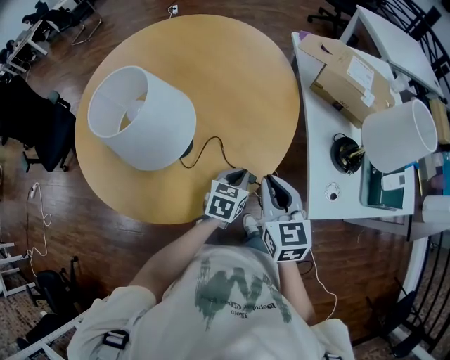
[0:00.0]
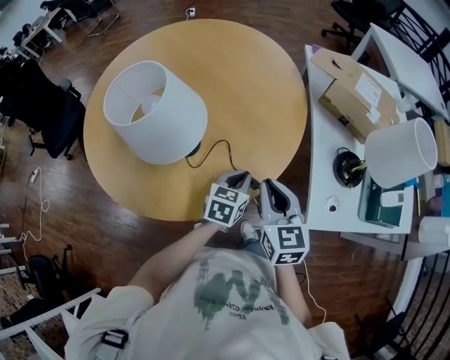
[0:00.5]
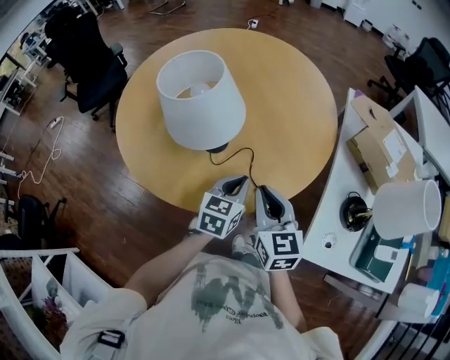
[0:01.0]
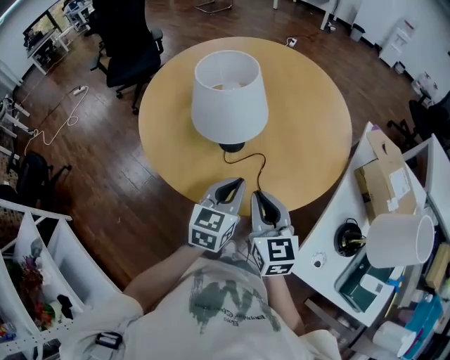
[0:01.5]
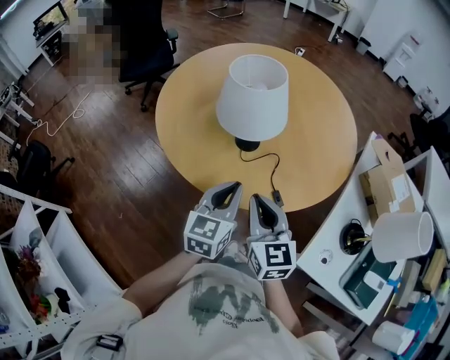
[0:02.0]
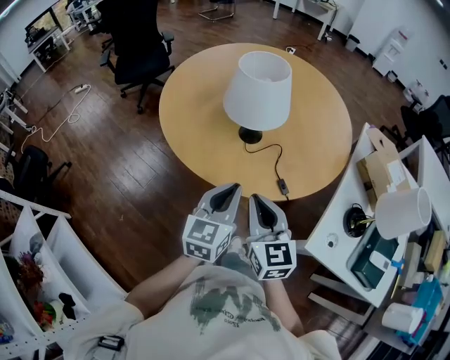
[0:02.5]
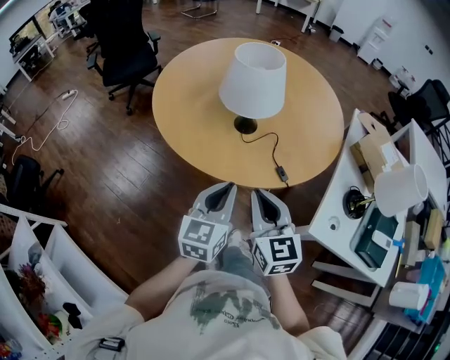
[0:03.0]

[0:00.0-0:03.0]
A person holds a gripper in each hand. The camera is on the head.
0:00.0 to 0:01.5: The left gripper travels upward by approximately 15 cm, and changes its angle by about 50 degrees, while the right gripper moves approximately 10 cm, and changes its angle by some 40 degrees.
0:01.5 to 0:03.0: Both grippers travel together backward and to the left, about 15 cm.

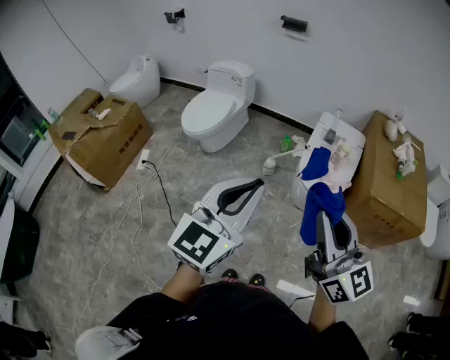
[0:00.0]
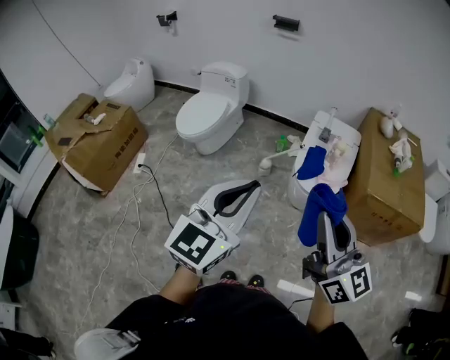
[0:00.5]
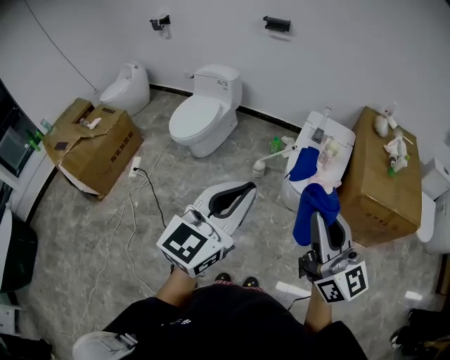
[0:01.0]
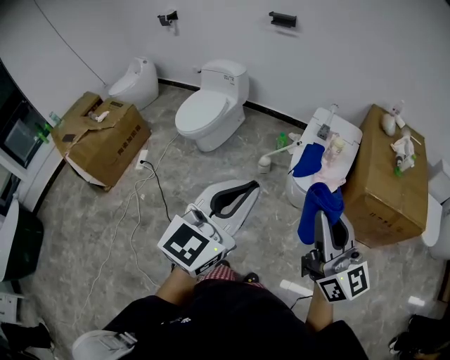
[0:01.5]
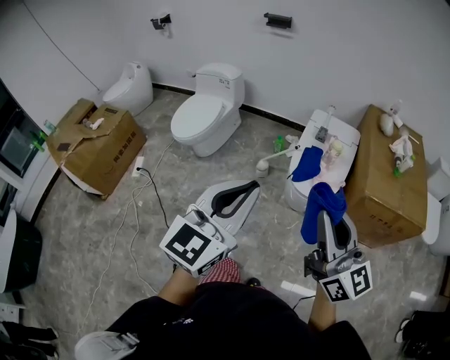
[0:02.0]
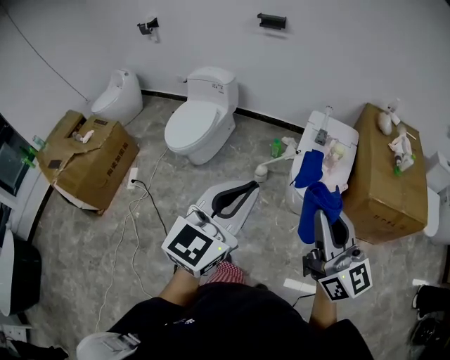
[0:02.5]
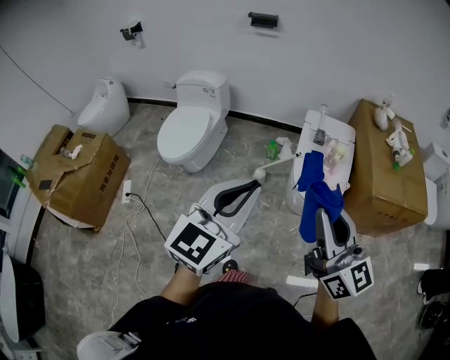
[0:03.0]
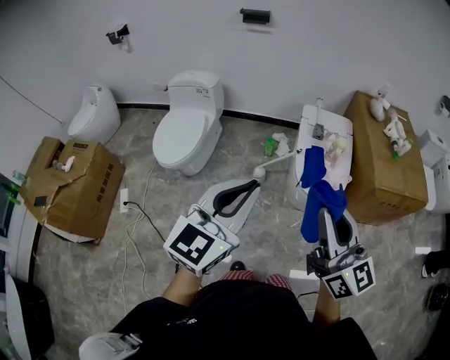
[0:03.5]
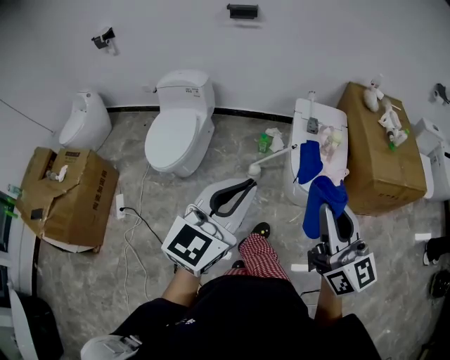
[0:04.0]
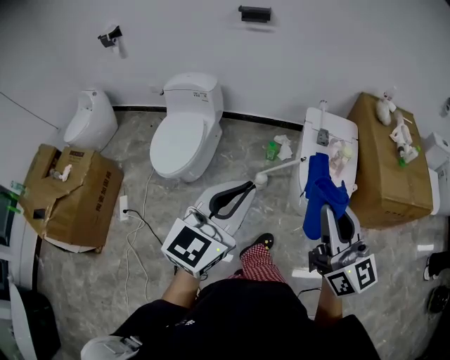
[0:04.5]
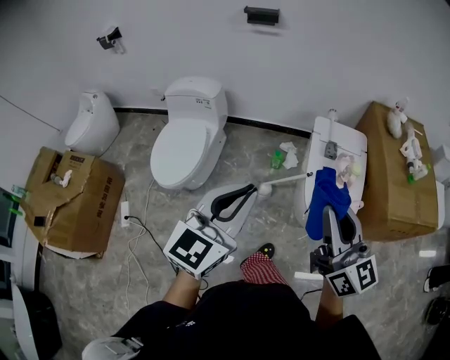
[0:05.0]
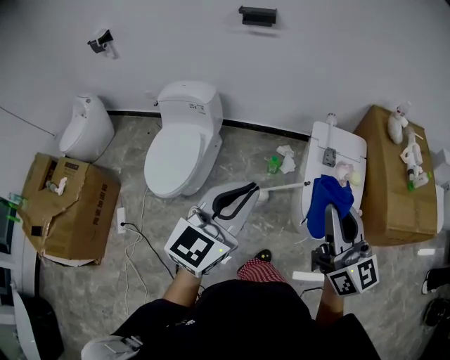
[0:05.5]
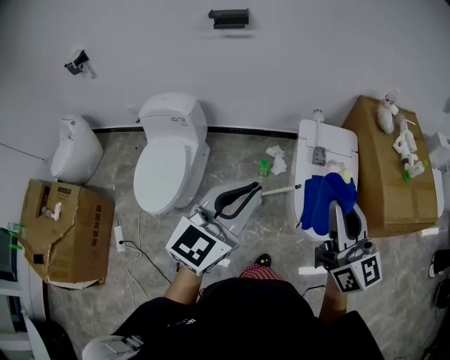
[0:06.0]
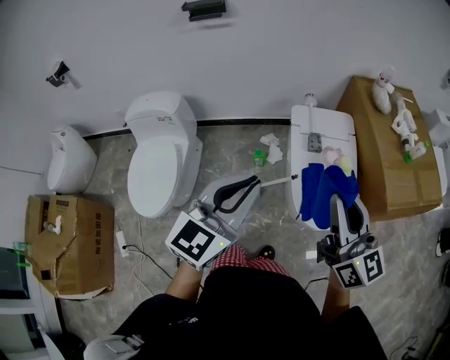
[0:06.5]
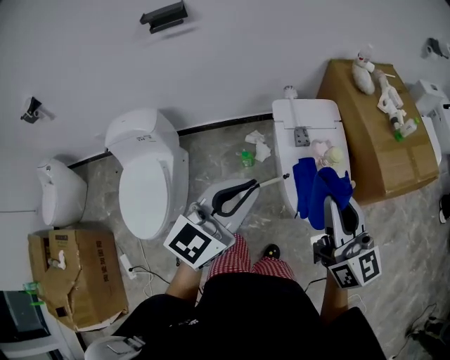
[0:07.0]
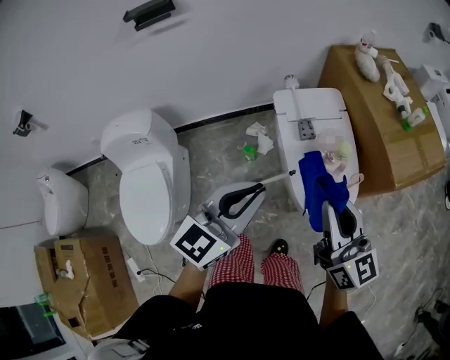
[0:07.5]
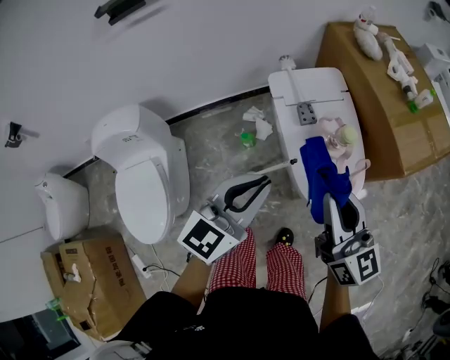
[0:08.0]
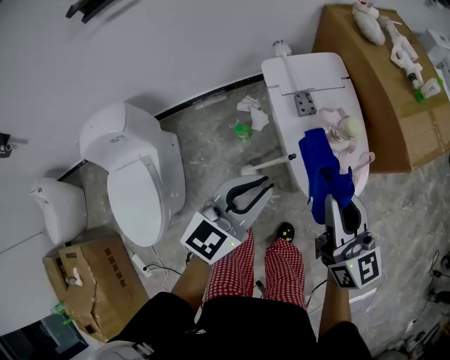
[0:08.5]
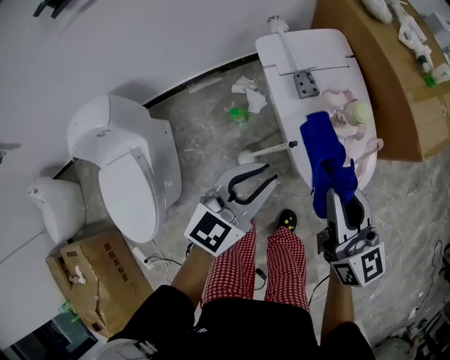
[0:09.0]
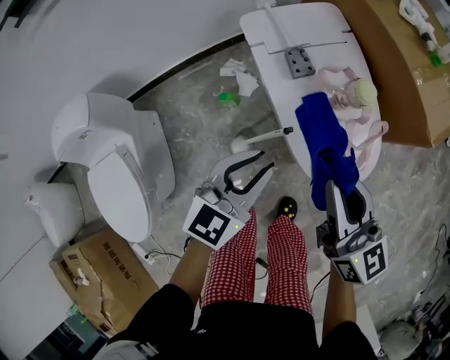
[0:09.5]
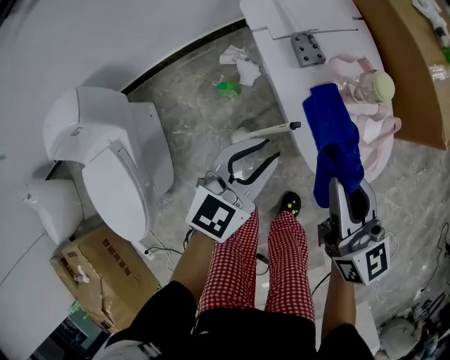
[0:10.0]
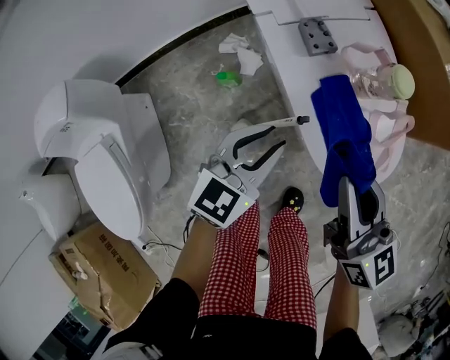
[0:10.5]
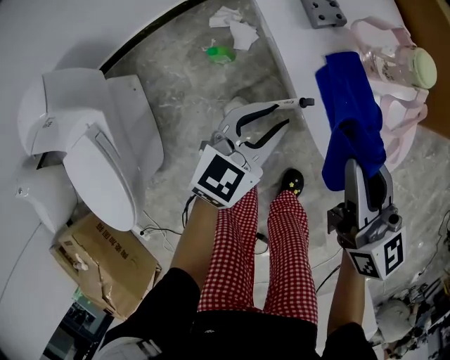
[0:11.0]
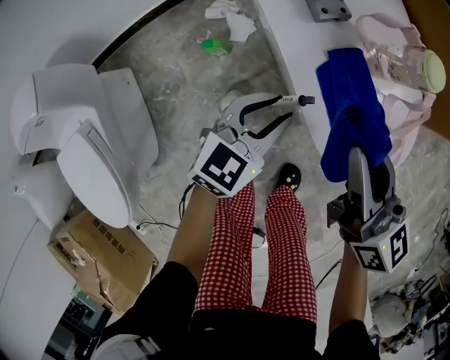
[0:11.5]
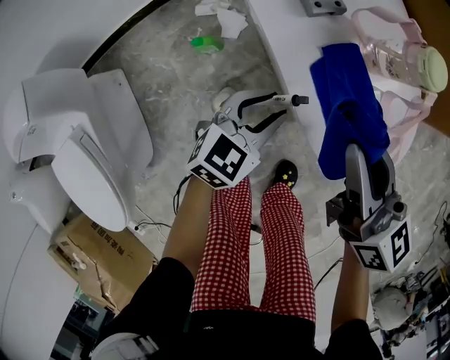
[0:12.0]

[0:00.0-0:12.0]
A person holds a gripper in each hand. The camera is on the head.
0:00.0 to 0:02.0: The two grippers go some 5 cm to the right.
0:02.0 to 0:04.0: The grippers both shift to the left and forward by about 20 cm.
0:04.0 to 0:06.0: The two grippers go approximately 30 cm forward.
0:06.0 to 0:08.0: The right gripper heads downward and forward, covering about 15 cm, while the left gripper travels forward and downward by approximately 20 cm, and swivels roughly 20 degrees.
0:08.0 to 0:10.0: Both grippers travel together downward, some 20 cm.
0:10.0 to 0:12.0: The left gripper is displaced downward by some 20 cm, while the right gripper is displaced downward and forward by roughly 10 cm.

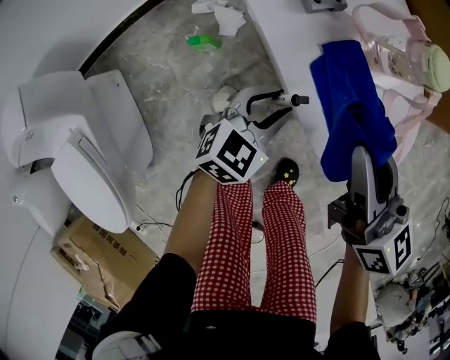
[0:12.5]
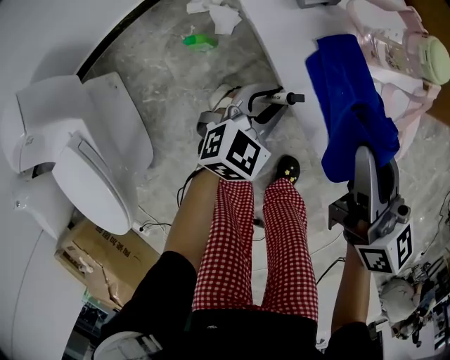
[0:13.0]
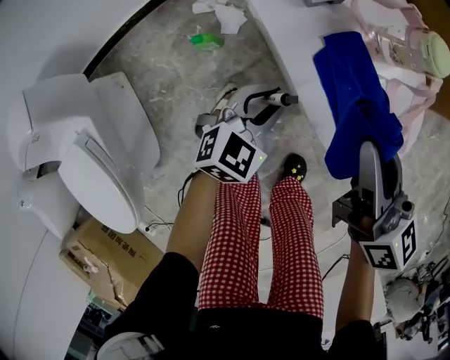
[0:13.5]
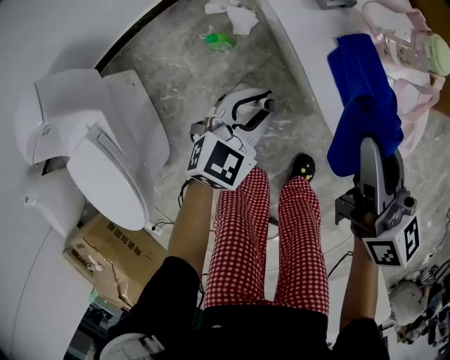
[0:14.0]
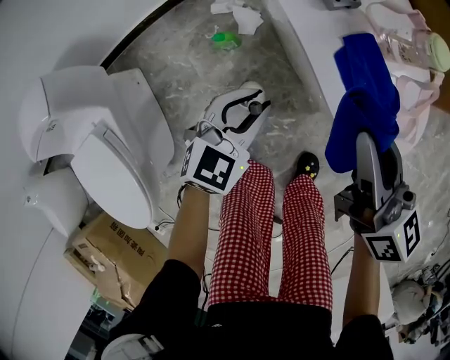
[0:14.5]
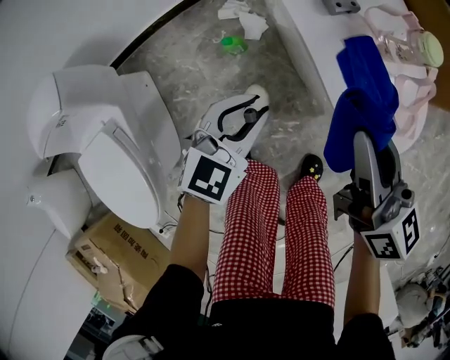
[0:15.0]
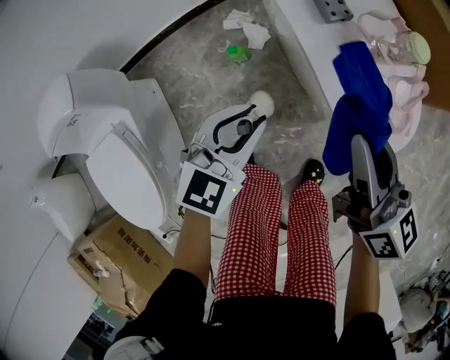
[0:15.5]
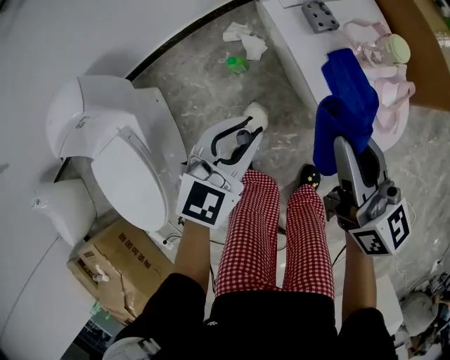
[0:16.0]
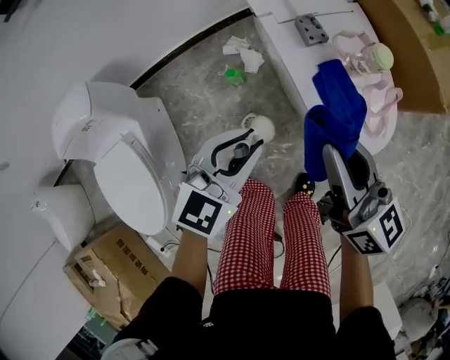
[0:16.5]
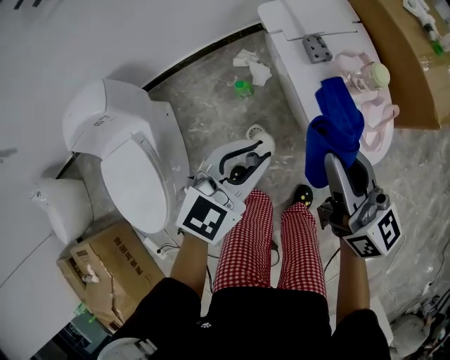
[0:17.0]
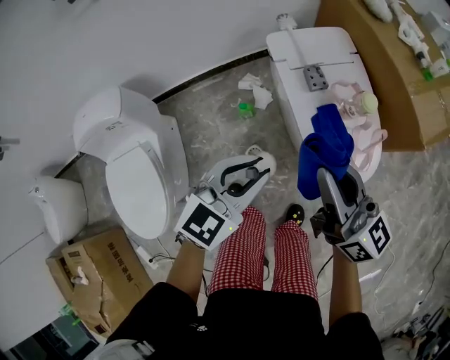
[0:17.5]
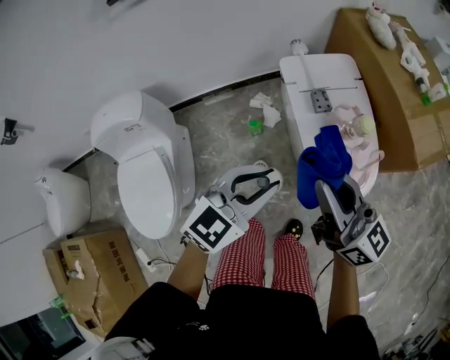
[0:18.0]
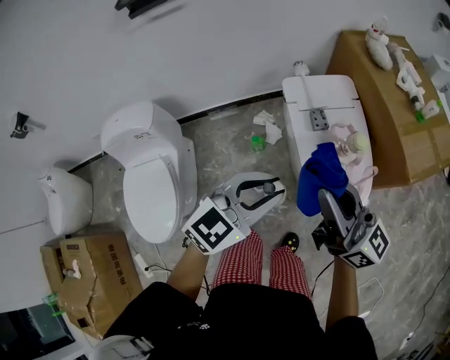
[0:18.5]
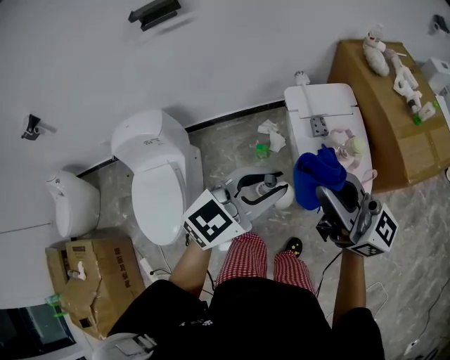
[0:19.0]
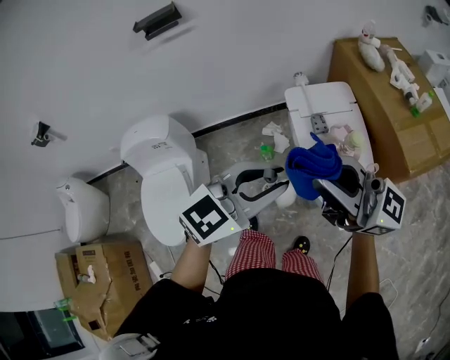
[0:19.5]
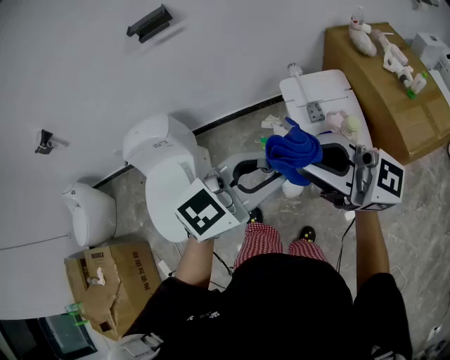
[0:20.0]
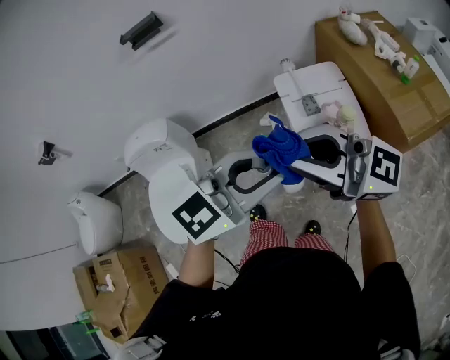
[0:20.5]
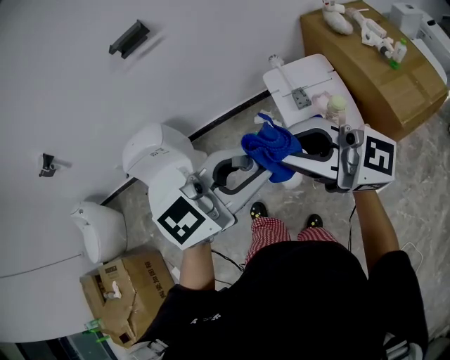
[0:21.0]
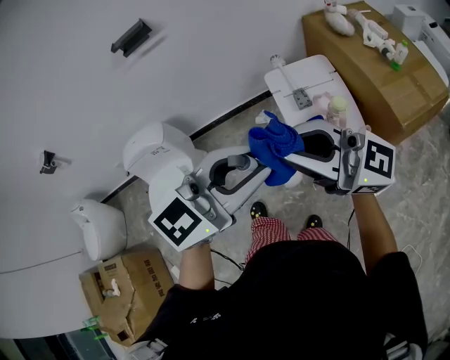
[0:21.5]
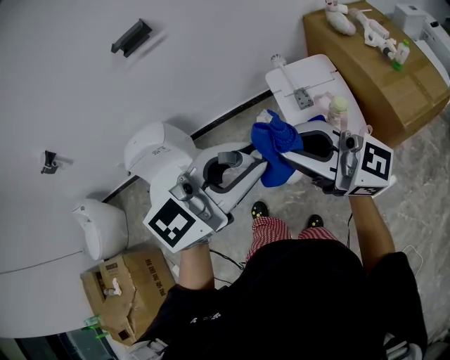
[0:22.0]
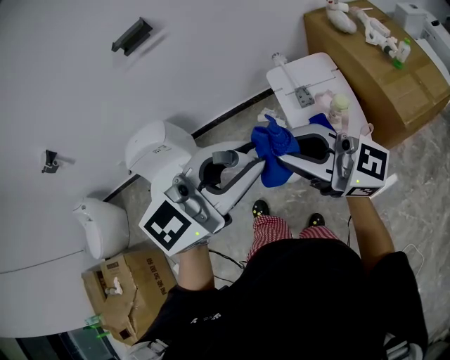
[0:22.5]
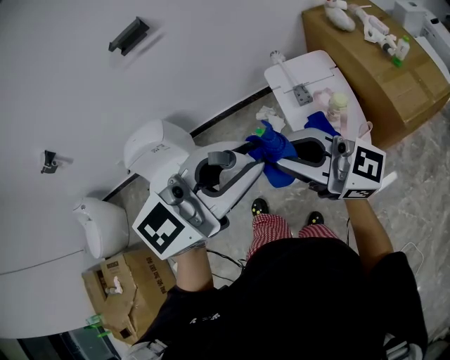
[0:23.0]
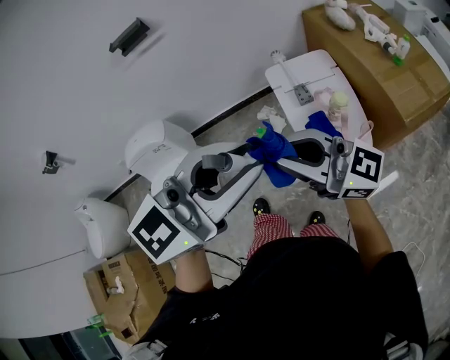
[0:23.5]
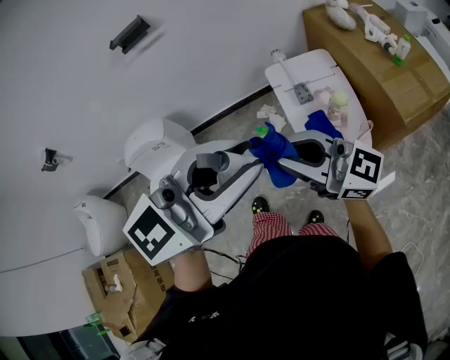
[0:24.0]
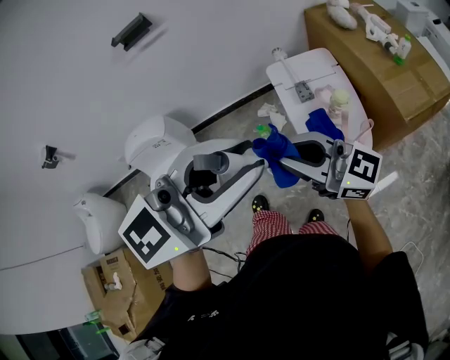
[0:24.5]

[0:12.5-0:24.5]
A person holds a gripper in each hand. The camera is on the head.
0:12.5 to 0:14.5: The left gripper is displaced to the left and upward by approximately 10 cm. The right gripper changes place by some 5 cm.
0:14.5 to 0:16.5: The right gripper travels upward and backward by some 15 cm, while the left gripper heads upward, covering some 20 cm.
0:16.5 to 0:18.5: The grippers both shift upward by about 20 cm. The right gripper changes its angle by about 30 degrees.
0:18.5 to 0:20.5: Both grippers move upward, some 10 cm. The right gripper turns by approximately 40 degrees.
0:20.5 to 0:22.5: The grippers move only a little.
0:22.5 to 0:24.5: The left gripper ends up about 5 cm from where it was. Meanwhile the right gripper travels downward by roughly 5 cm.
